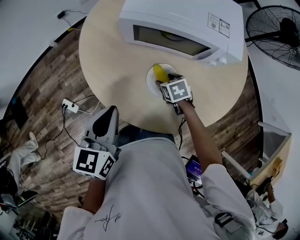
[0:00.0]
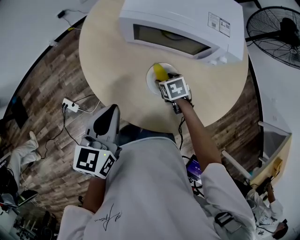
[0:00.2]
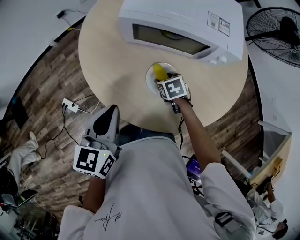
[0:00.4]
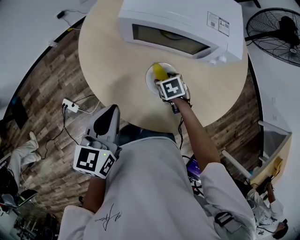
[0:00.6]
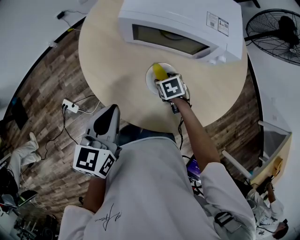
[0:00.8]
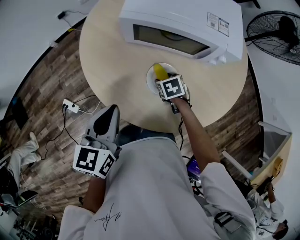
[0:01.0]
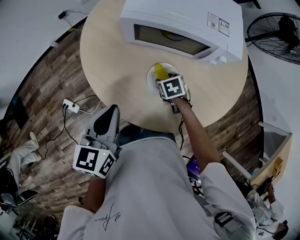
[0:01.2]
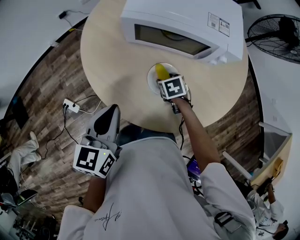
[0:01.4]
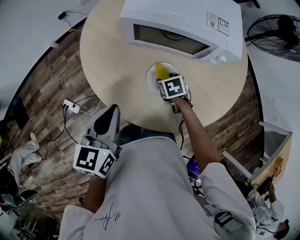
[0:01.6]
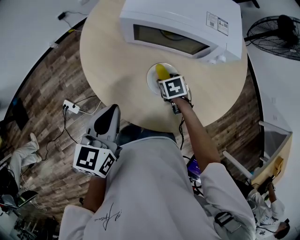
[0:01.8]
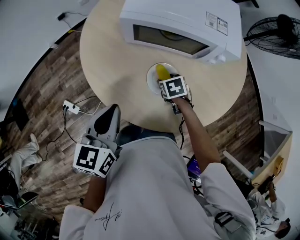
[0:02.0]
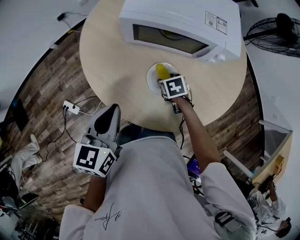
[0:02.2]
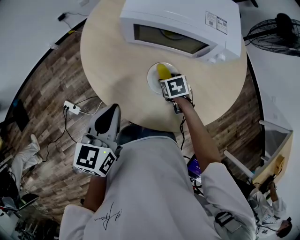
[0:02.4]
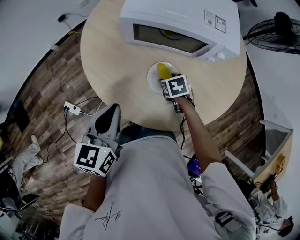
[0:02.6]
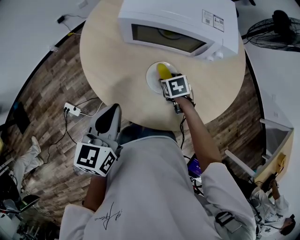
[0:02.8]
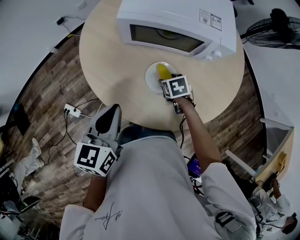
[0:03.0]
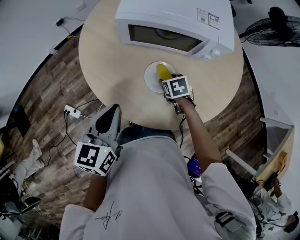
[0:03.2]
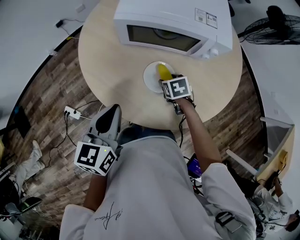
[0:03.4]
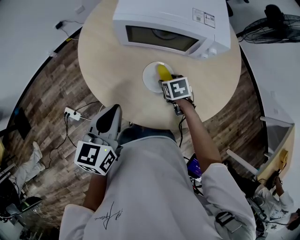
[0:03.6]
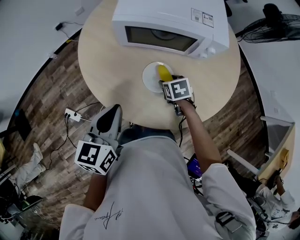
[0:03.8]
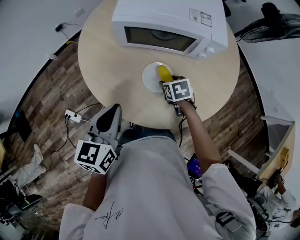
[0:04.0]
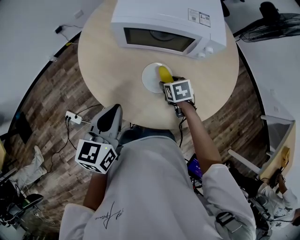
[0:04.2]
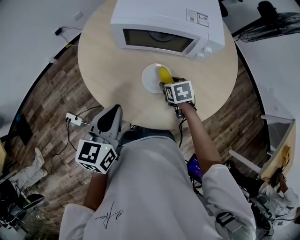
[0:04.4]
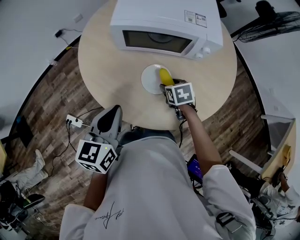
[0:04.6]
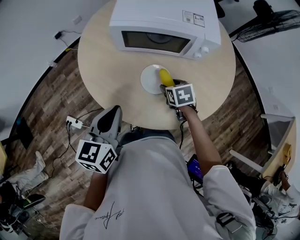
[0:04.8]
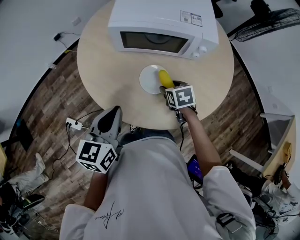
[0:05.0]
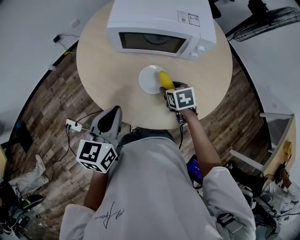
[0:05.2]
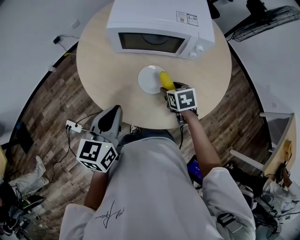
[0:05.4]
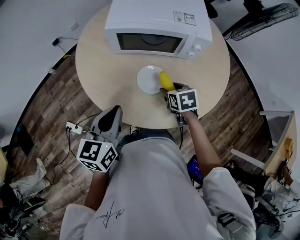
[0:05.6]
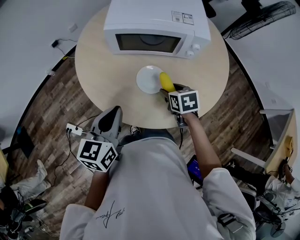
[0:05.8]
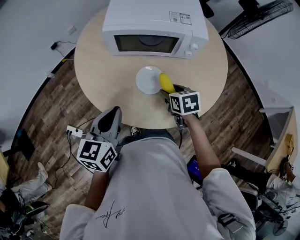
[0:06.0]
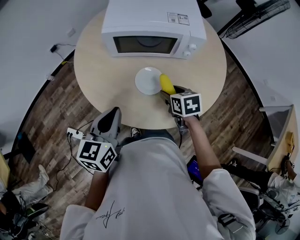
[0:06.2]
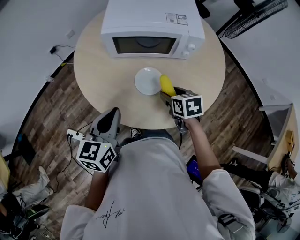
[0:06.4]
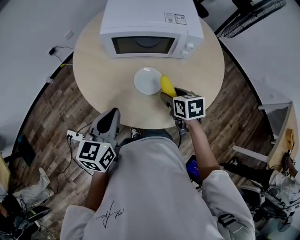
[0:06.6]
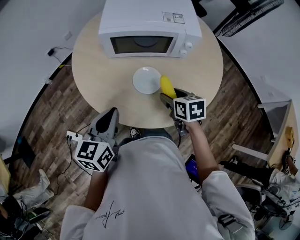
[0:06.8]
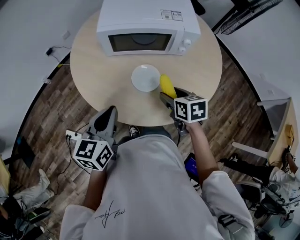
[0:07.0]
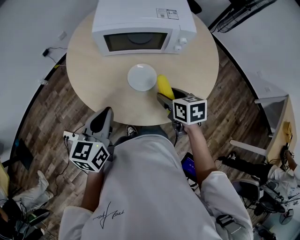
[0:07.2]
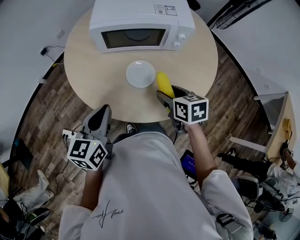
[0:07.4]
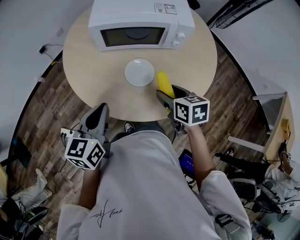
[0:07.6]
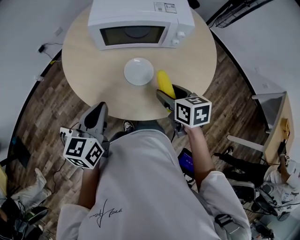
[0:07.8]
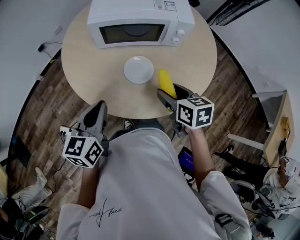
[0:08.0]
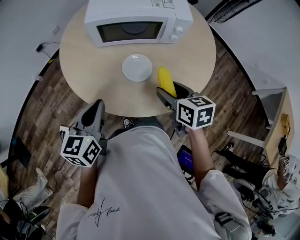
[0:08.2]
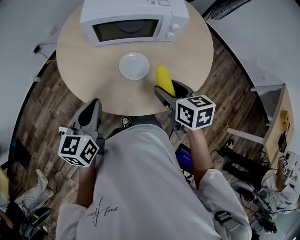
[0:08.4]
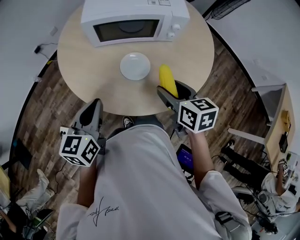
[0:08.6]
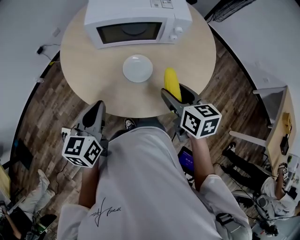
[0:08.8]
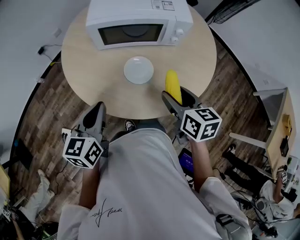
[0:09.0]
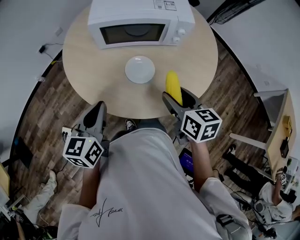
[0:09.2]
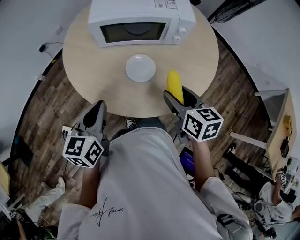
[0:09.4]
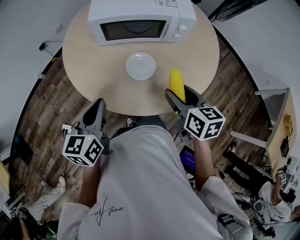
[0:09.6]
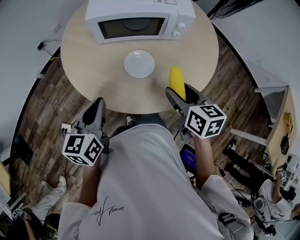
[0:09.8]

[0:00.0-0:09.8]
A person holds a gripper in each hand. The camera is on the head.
0.0 to 2.8 s: The grippers make only small movements.
2.8 to 4.2 s: The grippers move only a little.
4.2 to 5.6 s: The right gripper travels upward by approximately 5 cm.
5.6 to 7.0 s: The right gripper shifts roughly 5 cm upward.
7.0 to 8.4 s: The right gripper is displaced upward by some 5 cm.
8.4 to 9.8 s: There are only small adjustments of the grippers.

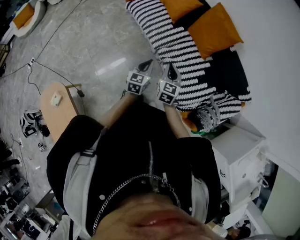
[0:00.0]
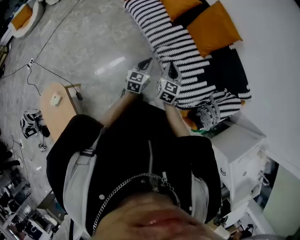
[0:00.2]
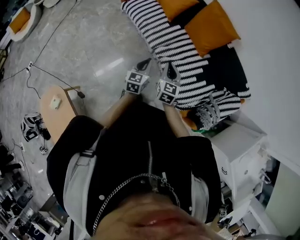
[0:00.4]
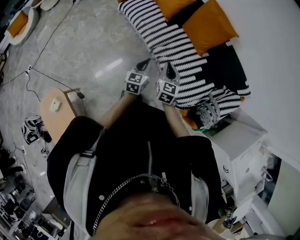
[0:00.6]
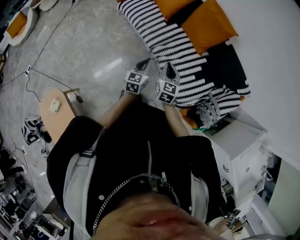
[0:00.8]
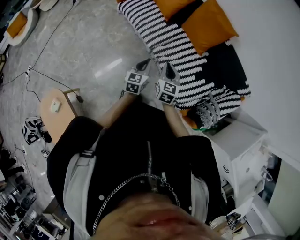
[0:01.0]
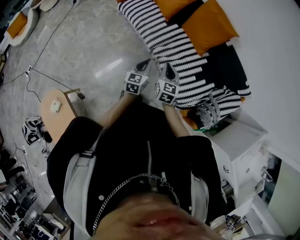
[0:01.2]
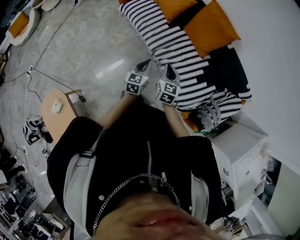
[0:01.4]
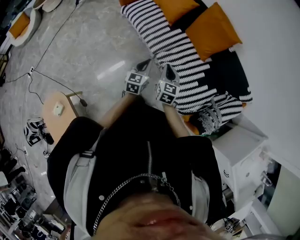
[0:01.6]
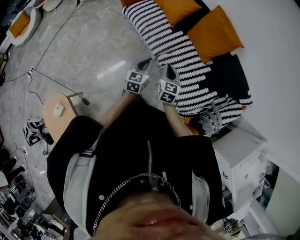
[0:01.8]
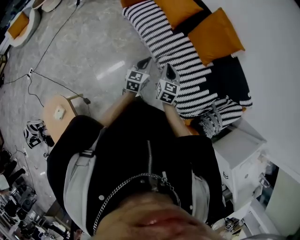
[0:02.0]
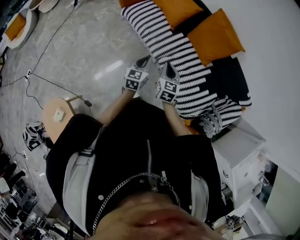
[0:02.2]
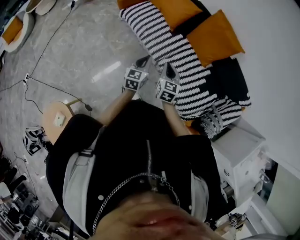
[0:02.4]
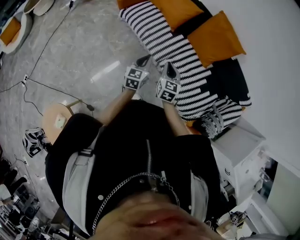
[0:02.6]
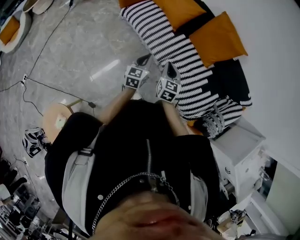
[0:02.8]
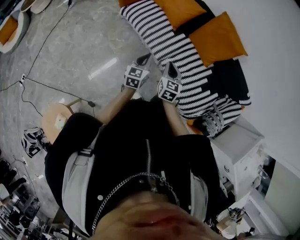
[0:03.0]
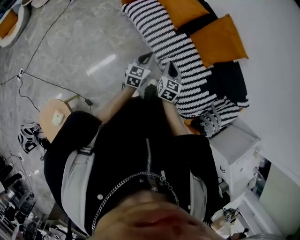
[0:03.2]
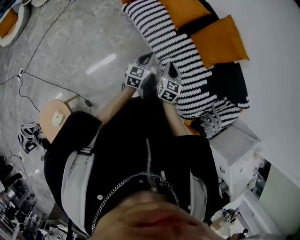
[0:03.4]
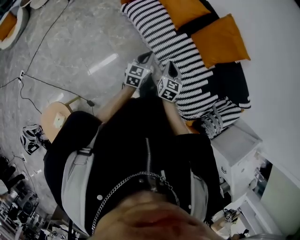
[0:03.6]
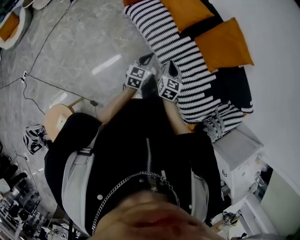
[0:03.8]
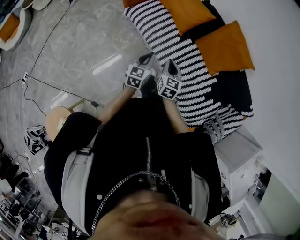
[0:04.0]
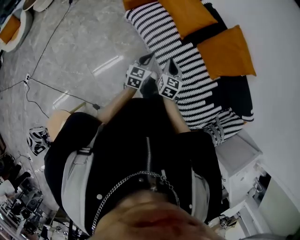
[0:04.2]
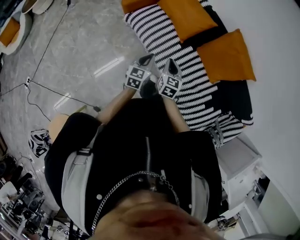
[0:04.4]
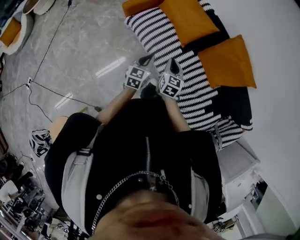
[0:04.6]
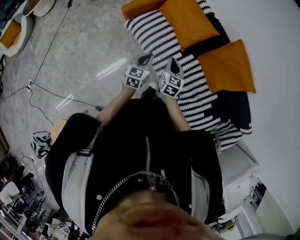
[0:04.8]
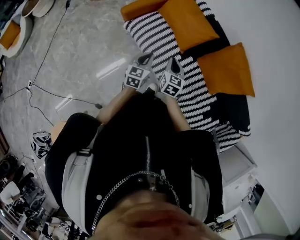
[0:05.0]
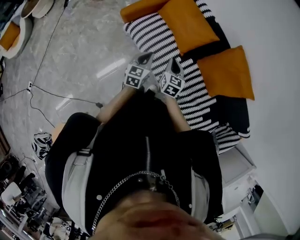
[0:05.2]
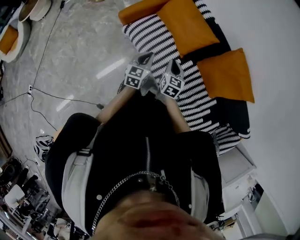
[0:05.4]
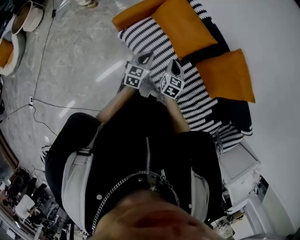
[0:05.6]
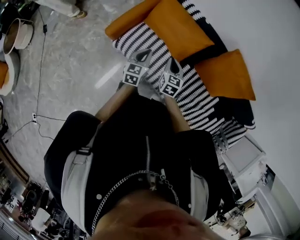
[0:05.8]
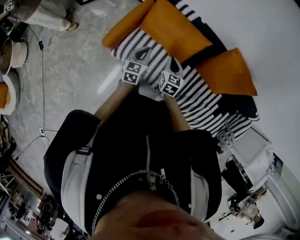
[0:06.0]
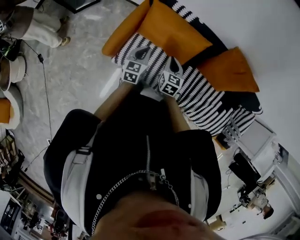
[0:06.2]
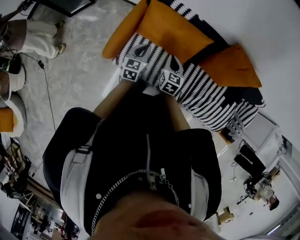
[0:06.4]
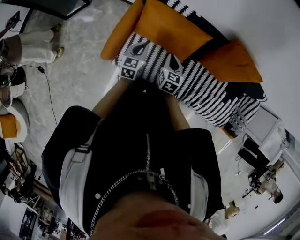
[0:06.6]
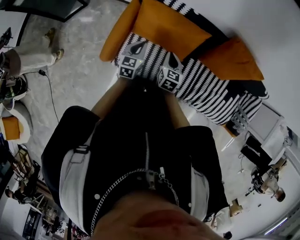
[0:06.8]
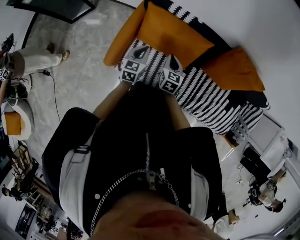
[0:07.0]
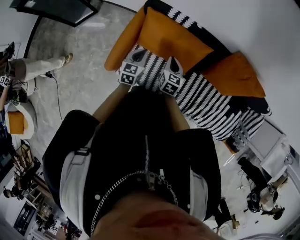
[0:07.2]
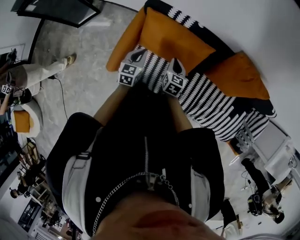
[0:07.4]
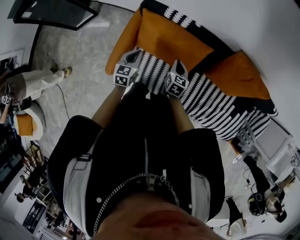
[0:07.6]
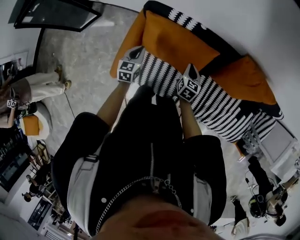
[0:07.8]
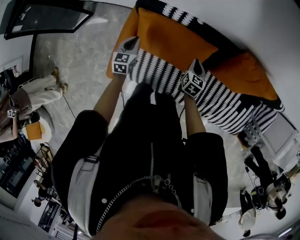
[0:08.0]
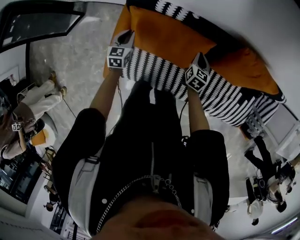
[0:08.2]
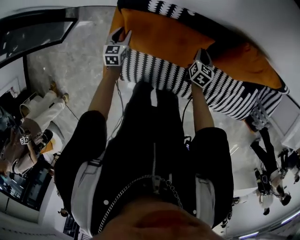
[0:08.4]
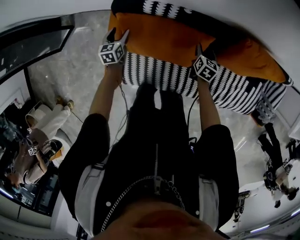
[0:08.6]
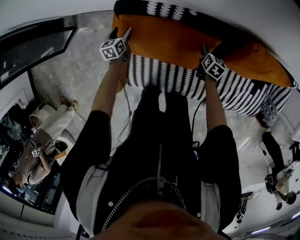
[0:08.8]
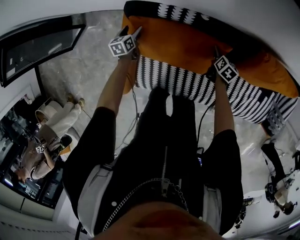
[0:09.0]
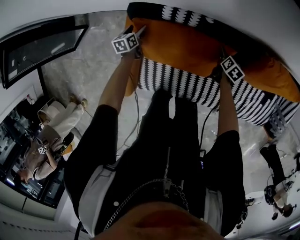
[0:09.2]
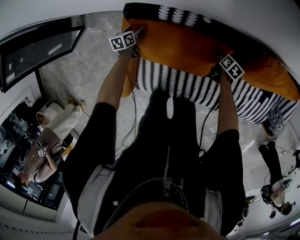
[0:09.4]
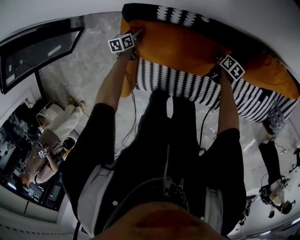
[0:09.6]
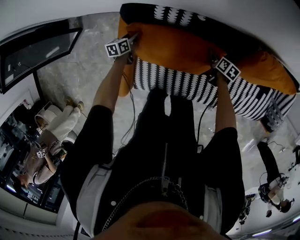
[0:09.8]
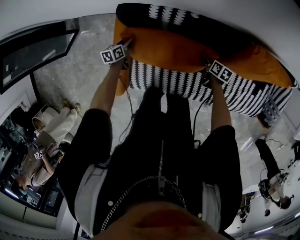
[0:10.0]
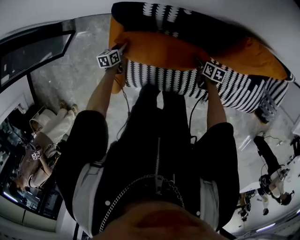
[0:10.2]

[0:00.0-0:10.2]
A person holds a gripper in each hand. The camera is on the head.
0.0 to 1.4 s: The grippers make only small movements.
1.4 to 3.0 s: The grippers both shift to the left and forward by roughly 20 cm.
3.0 to 4.4 s: The right gripper travels forward and to the left by some 20 cm. Meanwhile the left gripper is displaced forward by approximately 15 cm.
4.4 to 5.8 s: The grippers both shift forward by some 30 cm.
5.8 to 7.2 s: The two grippers go roughly 20 cm forward and to the left.
7.2 to 8.8 s: The left gripper moves forward, downward and to the left, some 35 cm, and opens its fingers. Meanwhile the right gripper shifts about 30 cm forward, downward and to the right, changes its angle by about 30 degrees, and opens.
8.8 to 10.2 s: Both grippers move backward, roughly 5 cm. The left gripper closes up, while the right gripper swivels approximately 30 degrees.

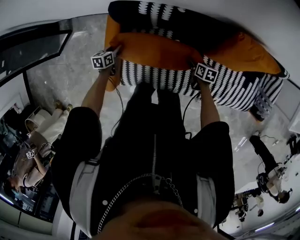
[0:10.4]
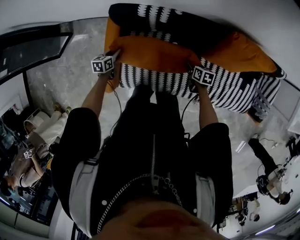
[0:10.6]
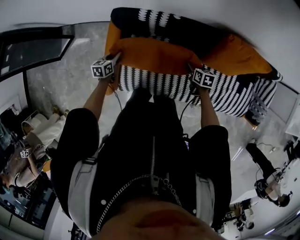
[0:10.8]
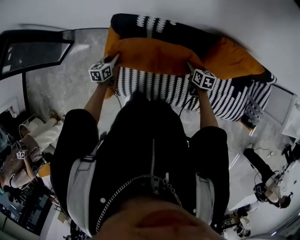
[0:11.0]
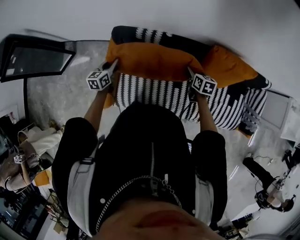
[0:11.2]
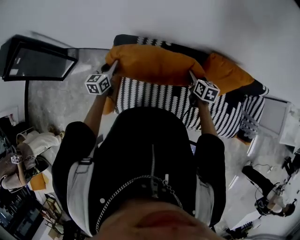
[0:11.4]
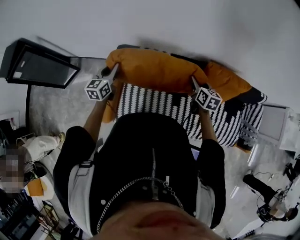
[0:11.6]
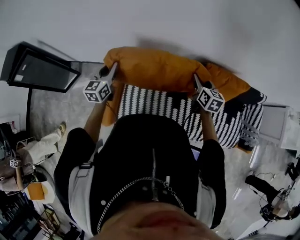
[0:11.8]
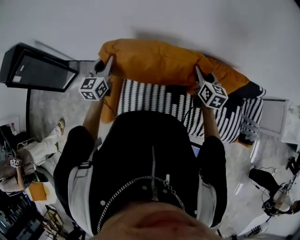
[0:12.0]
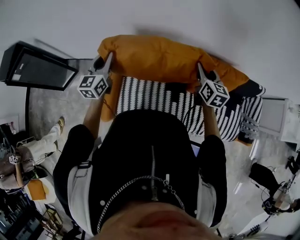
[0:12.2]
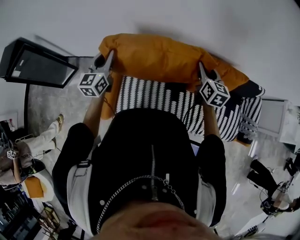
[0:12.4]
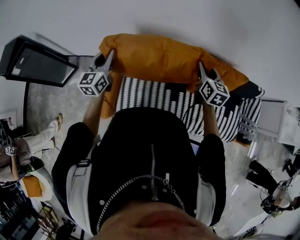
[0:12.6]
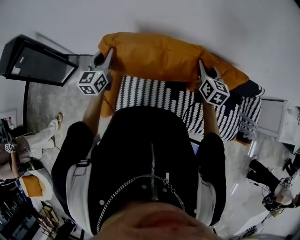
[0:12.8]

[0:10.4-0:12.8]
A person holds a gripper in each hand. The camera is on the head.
10.4 to 11.6 s: The grippers both shift upward by about 30 cm. The right gripper swivels about 30 degrees; the left gripper tips its fingers upward by some 30 degrees.
11.6 to 12.8 s: Both grippers travel together upward, approximately 10 cm.

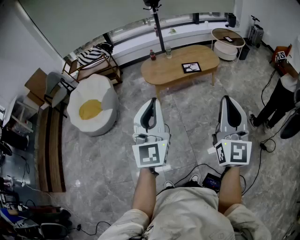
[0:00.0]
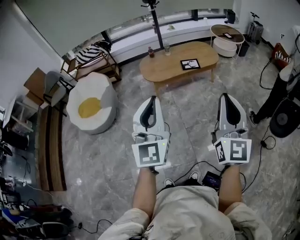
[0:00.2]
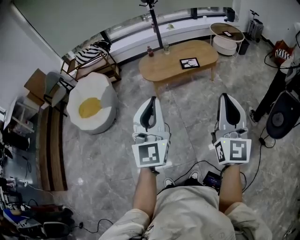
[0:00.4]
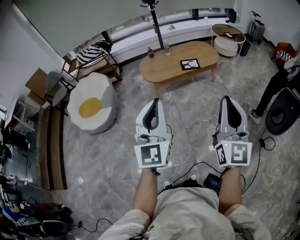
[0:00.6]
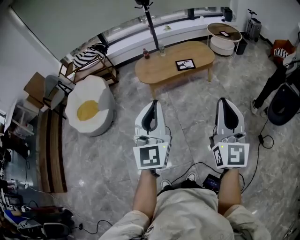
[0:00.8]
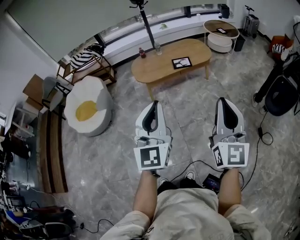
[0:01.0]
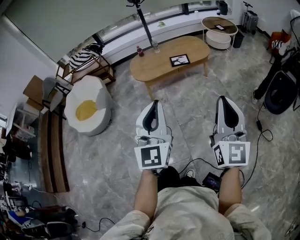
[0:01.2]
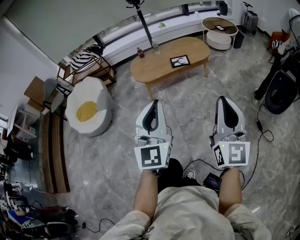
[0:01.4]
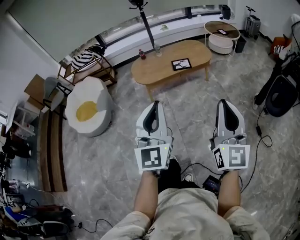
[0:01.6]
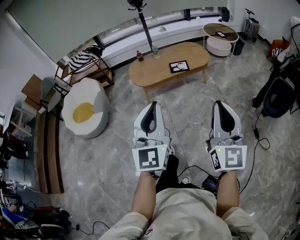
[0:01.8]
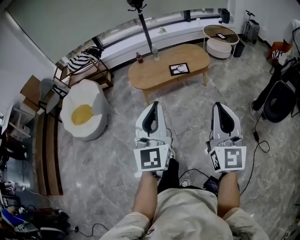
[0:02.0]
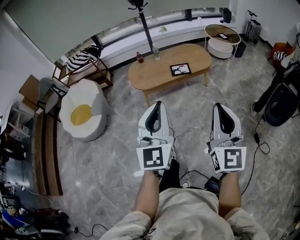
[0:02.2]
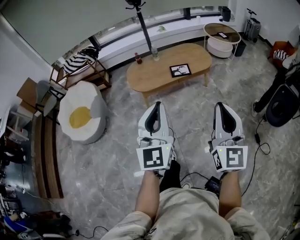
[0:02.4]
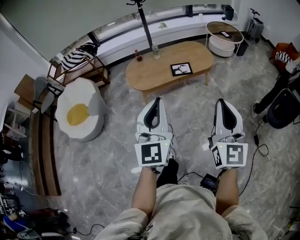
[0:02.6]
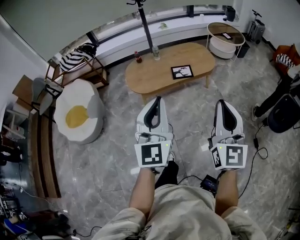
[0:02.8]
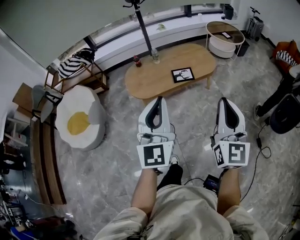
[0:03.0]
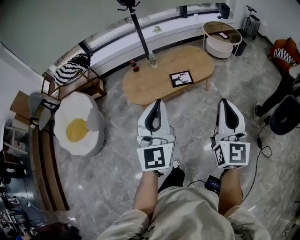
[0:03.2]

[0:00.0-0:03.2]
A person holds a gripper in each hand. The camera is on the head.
0.0 to 1.6 s: The two grippers go roughly 15 cm to the right.
1.6 to 3.2 s: The two grippers go approximately 30 cm forward.
